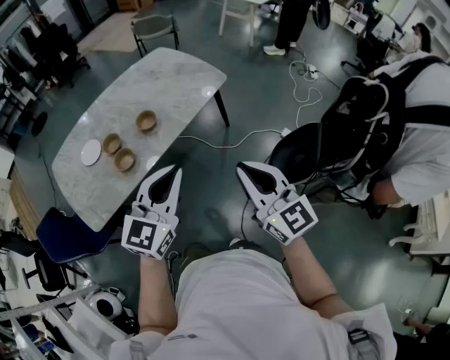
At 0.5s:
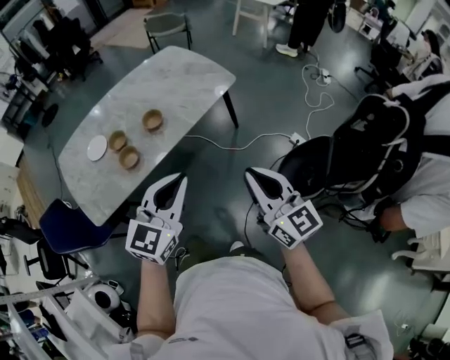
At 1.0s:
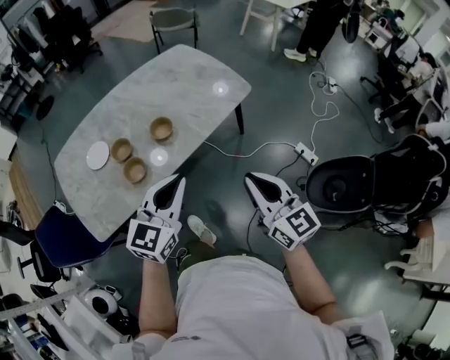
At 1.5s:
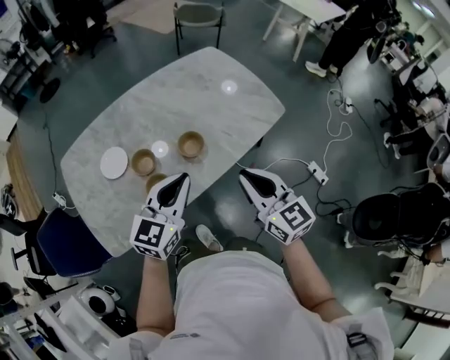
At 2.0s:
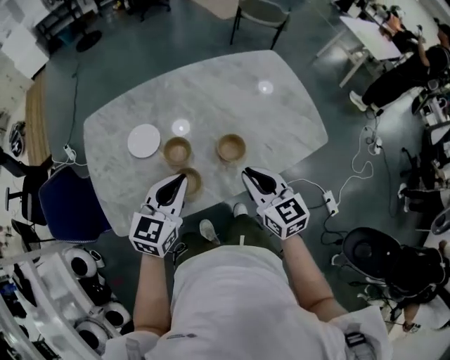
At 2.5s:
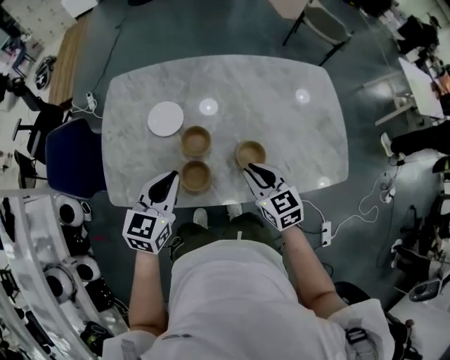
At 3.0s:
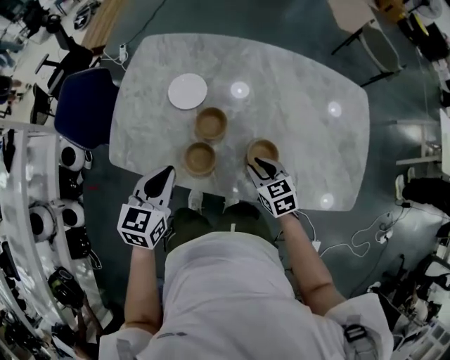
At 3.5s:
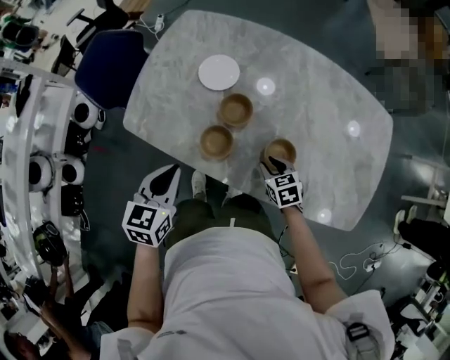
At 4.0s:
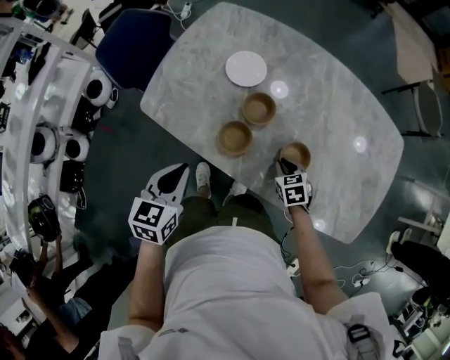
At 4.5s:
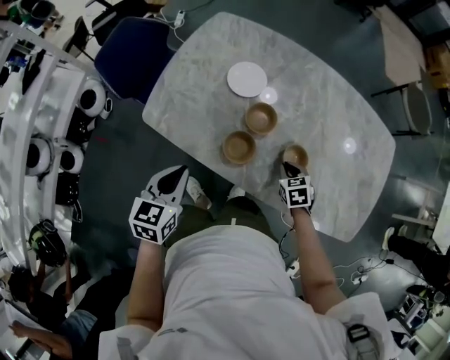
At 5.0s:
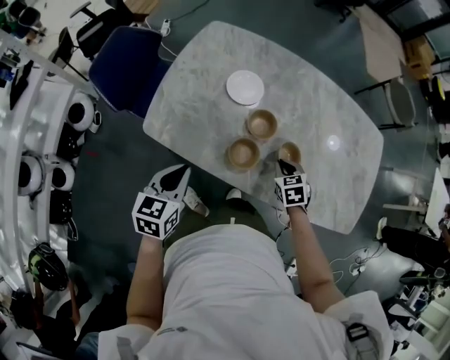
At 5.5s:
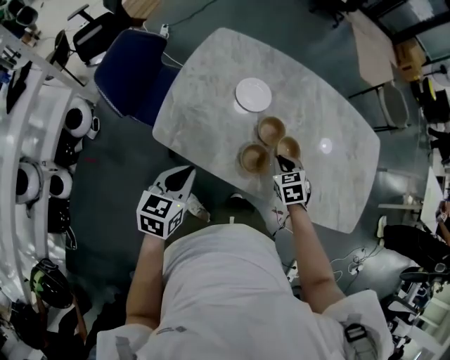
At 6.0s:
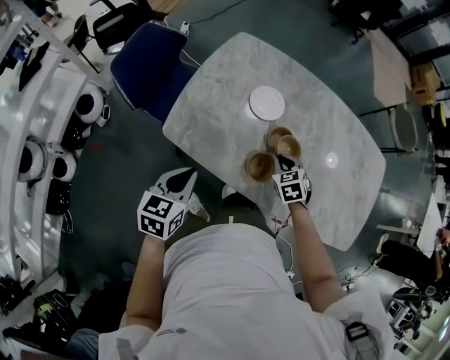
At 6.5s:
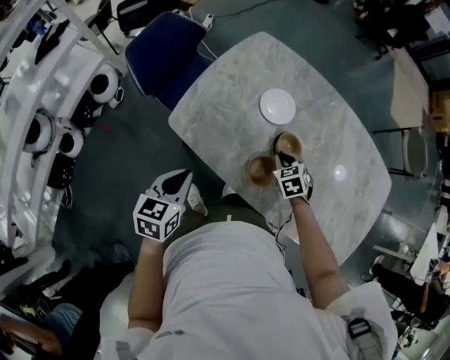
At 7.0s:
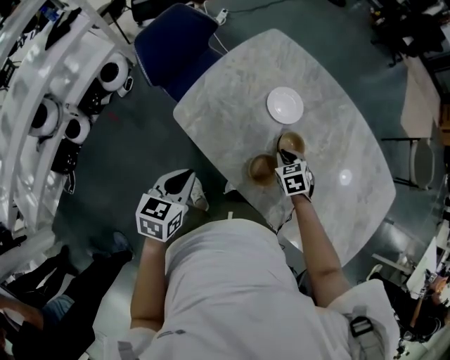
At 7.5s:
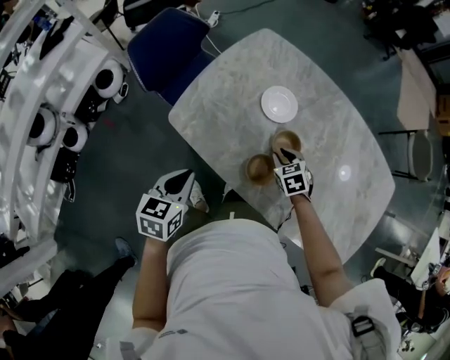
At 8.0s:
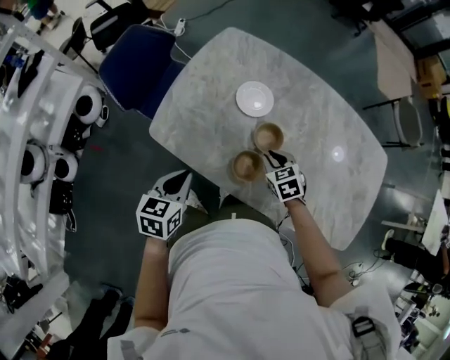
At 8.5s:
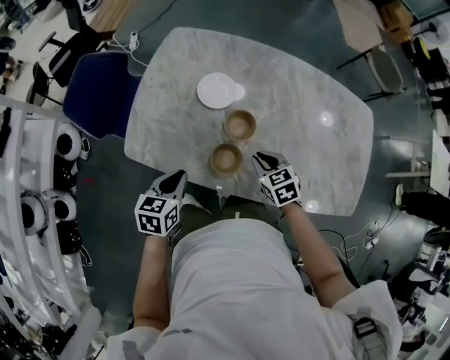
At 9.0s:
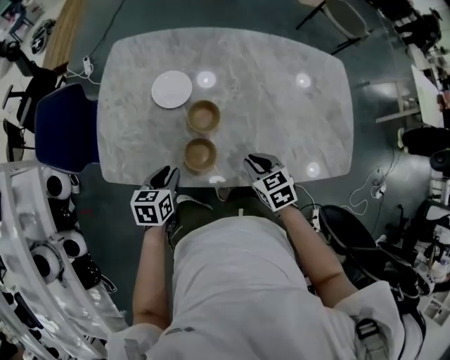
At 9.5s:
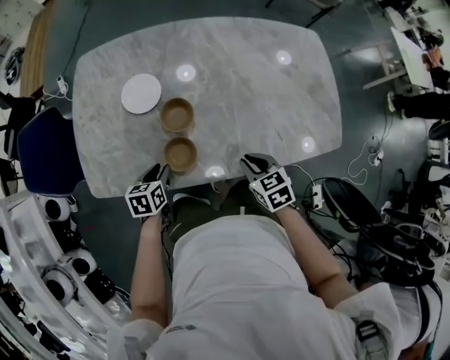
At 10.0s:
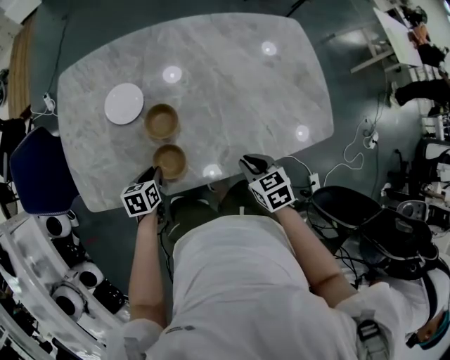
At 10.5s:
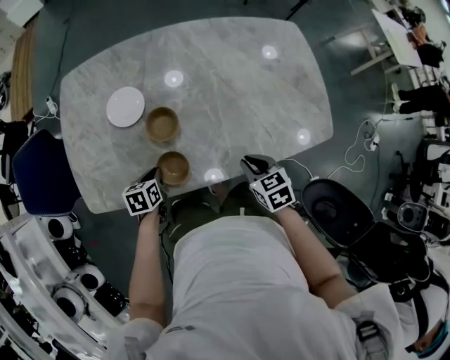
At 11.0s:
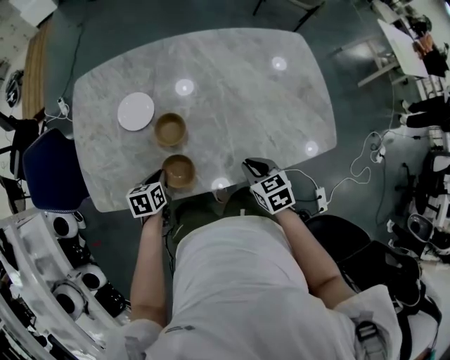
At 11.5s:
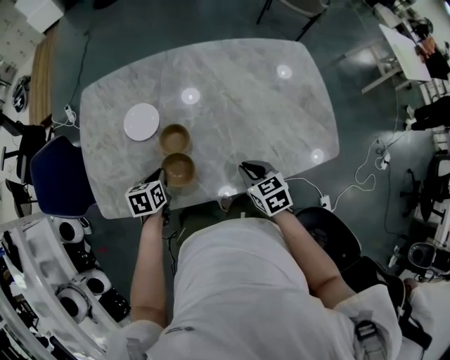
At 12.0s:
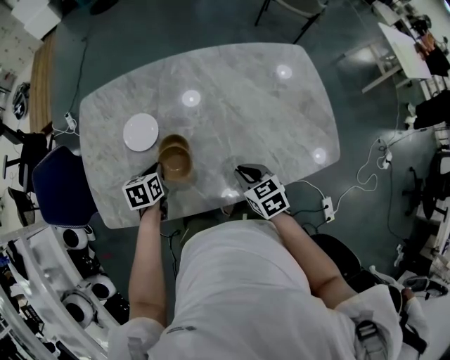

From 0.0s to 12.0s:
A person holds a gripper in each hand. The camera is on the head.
From 0.0s to 2.0s: The right gripper shifts approximately 40 cm forward and to the left, and swivels roughly 30 degrees, while the left gripper heads forward, to the left and downward, covering about 40 cm, and rotates some 30 degrees.
From 2.0s to 4.0s: The left gripper ends up approximately 15 cm from where it was, and rotates roughly 60 degrees. Meanwhile the right gripper moves downward, approximately 25 cm, and tips its fingers downward by approximately 40 degrees.
From 4.0s to 6.0s: The right gripper moves to the left, forward and upward, some 20 cm; the left gripper heads to the left, covering some 15 cm.
From 8.0s to 10.0s: The right gripper changes place by roughly 25 cm, and turns by some 40 degrees, while the left gripper is displaced downward by roughly 15 cm, and changes its angle by about 30 degrees.
From 10.0s to 12.0s: The right gripper heads forward, covering about 5 cm. Meanwhile the left gripper travels forward and upward by about 15 cm.

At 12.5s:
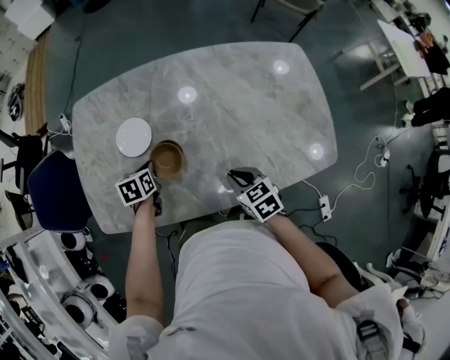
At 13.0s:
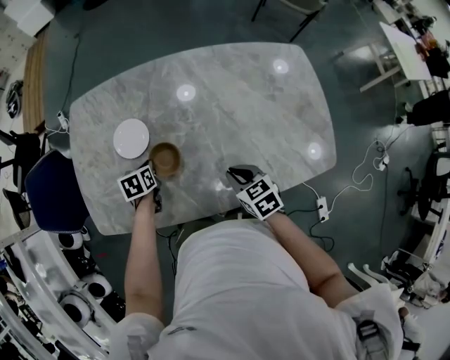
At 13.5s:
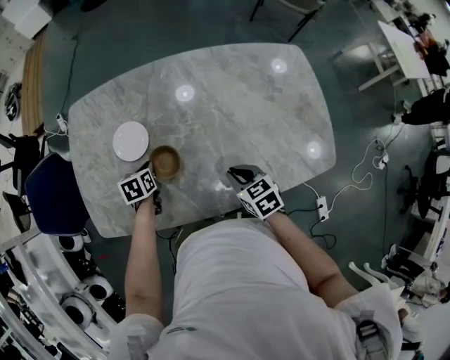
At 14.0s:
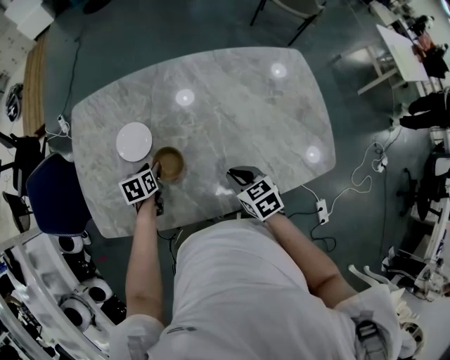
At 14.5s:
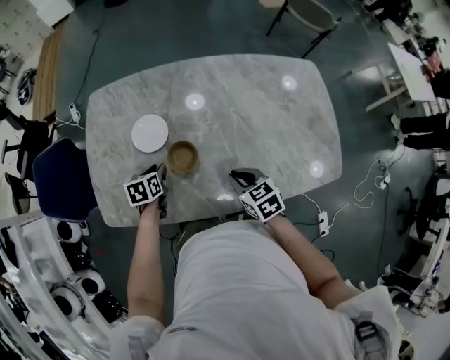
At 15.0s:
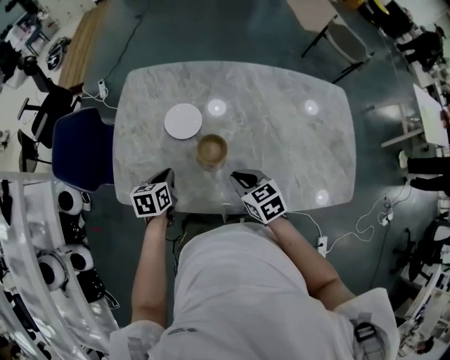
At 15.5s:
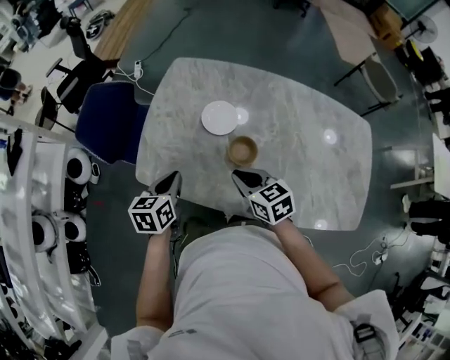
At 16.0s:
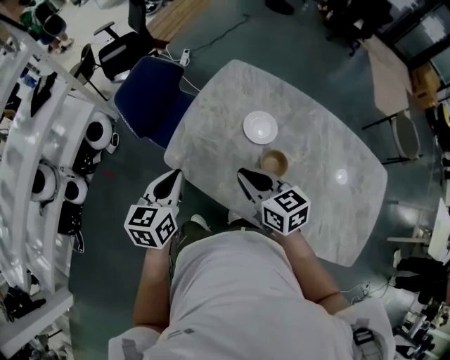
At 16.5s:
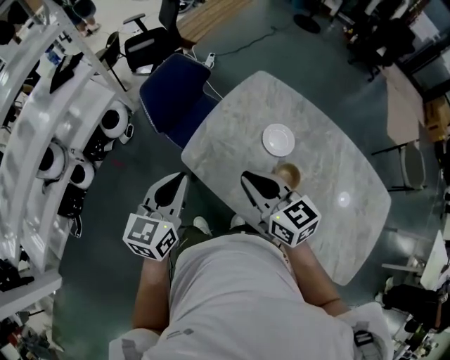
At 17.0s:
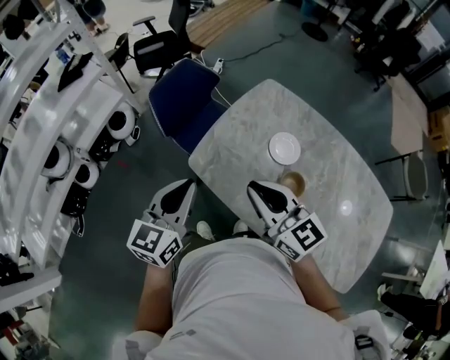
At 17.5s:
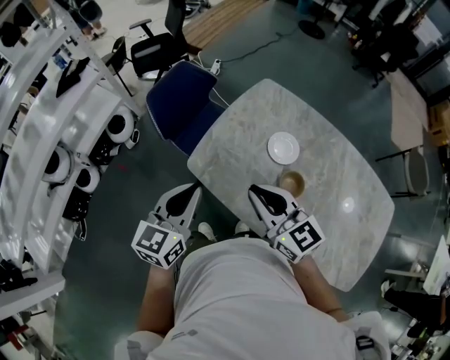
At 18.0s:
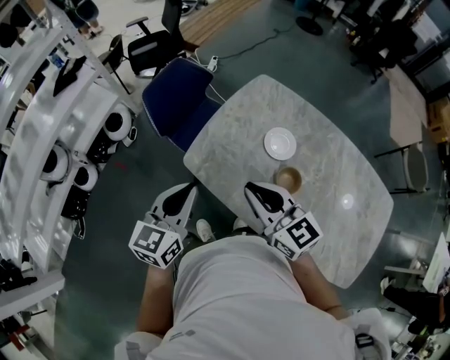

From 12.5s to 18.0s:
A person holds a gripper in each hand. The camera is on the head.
From 12.5s to 14.5s: The left gripper opens its fingers.
From 14.5s to 16.0s: The left gripper changes place by about 35 cm, changes its angle by approximately 40 degrees, and closes up. Meanwhile the right gripper ends up some 30 cm from where it was, and changes its angle by roughly 40 degrees.
From 16.0s to 18.0s: The left gripper heads upward, covering roughly 5 cm, while the right gripper goes about 10 cm upward and to the left, and rotates some 20 degrees.

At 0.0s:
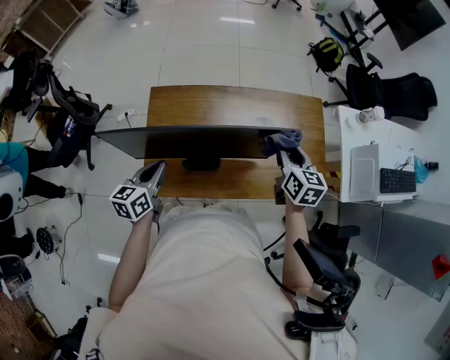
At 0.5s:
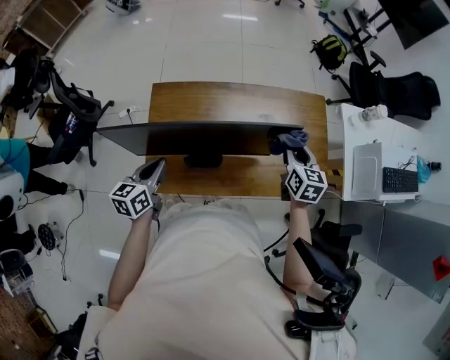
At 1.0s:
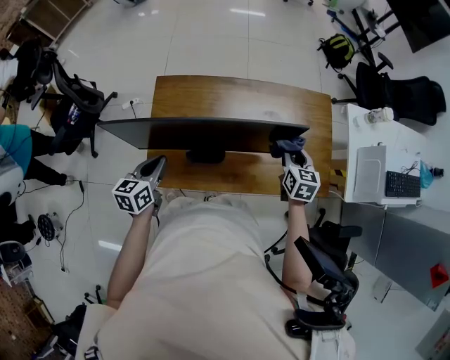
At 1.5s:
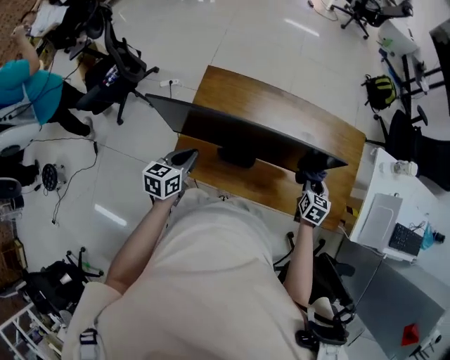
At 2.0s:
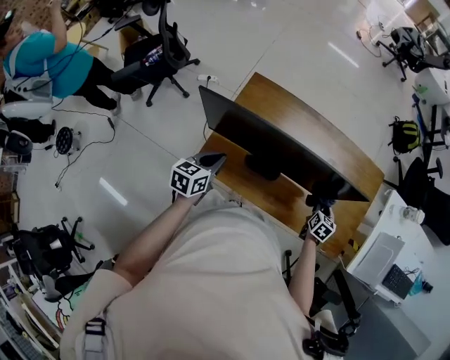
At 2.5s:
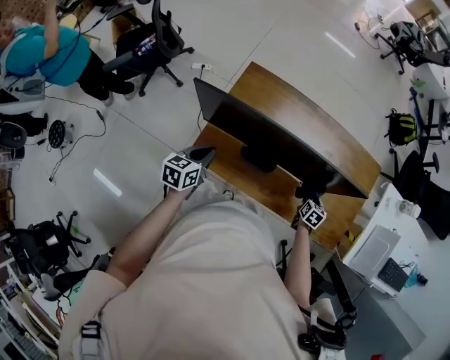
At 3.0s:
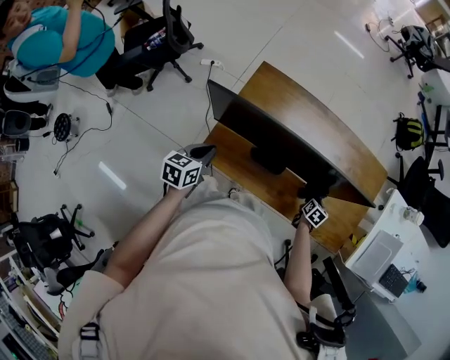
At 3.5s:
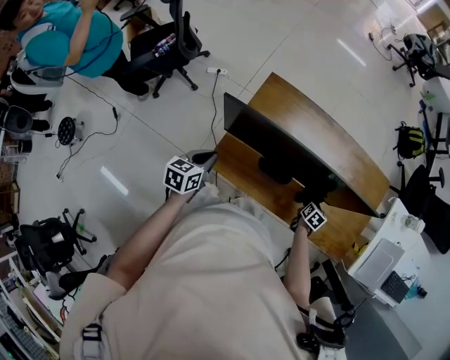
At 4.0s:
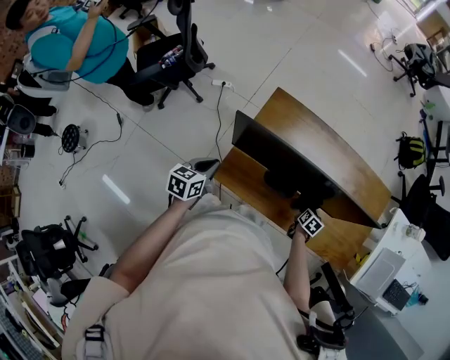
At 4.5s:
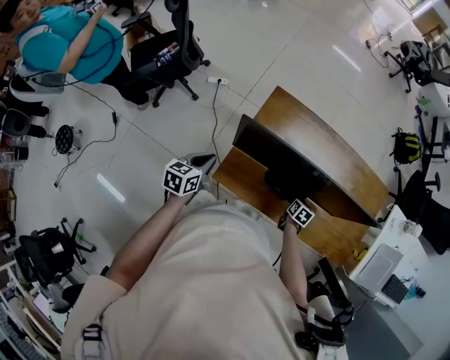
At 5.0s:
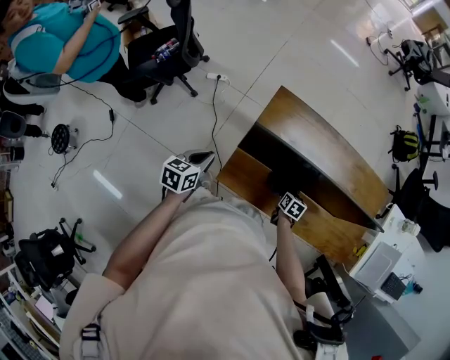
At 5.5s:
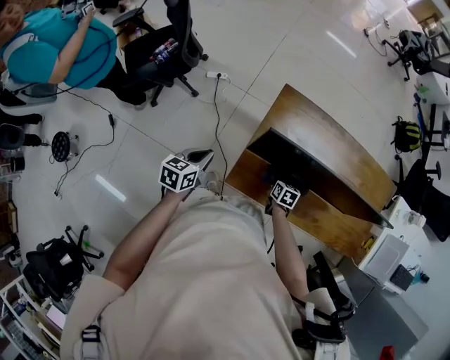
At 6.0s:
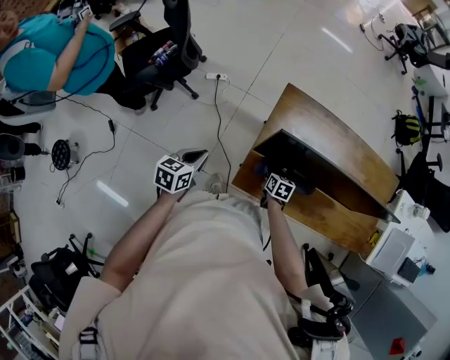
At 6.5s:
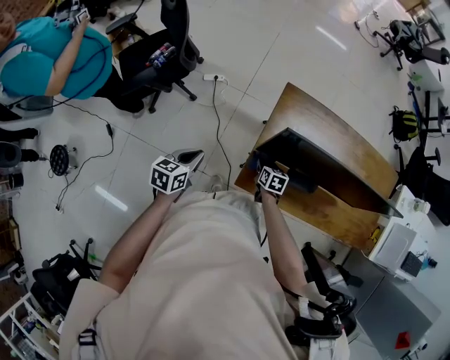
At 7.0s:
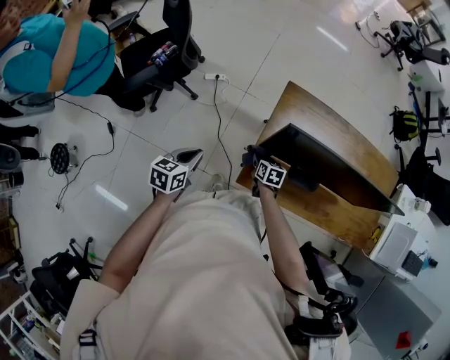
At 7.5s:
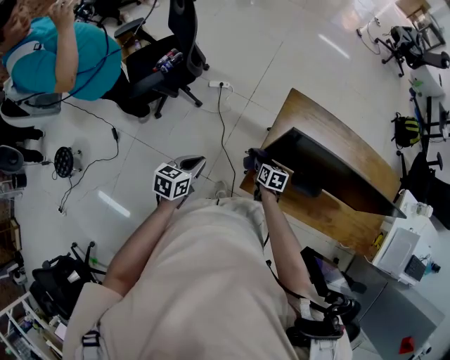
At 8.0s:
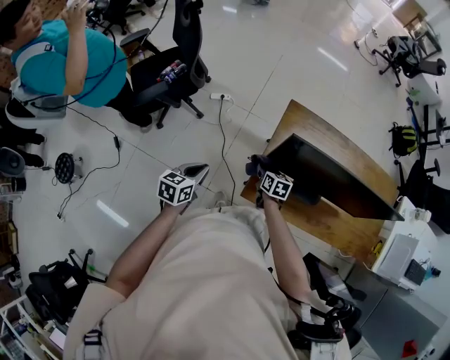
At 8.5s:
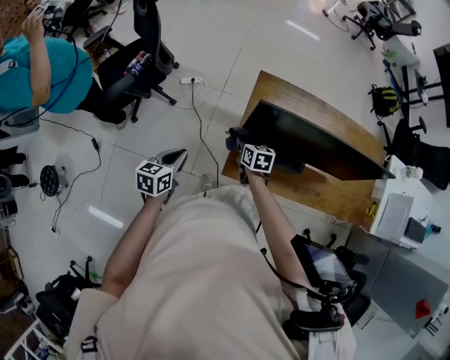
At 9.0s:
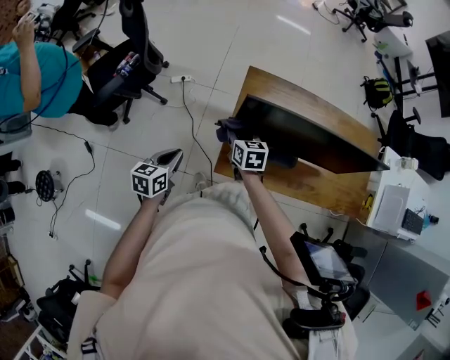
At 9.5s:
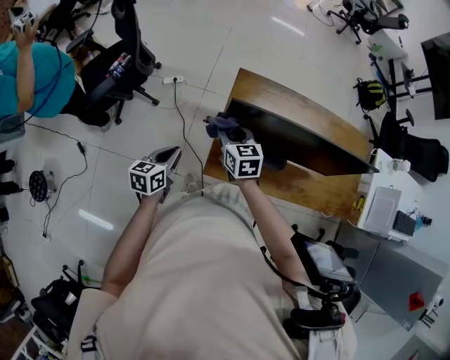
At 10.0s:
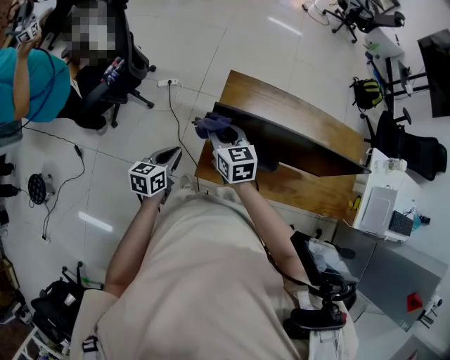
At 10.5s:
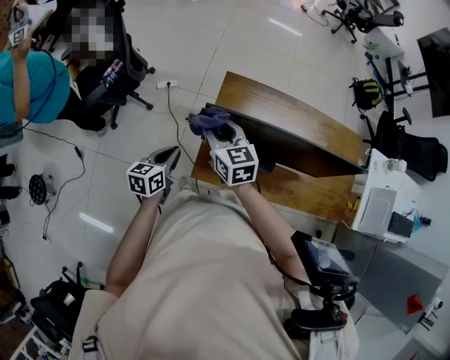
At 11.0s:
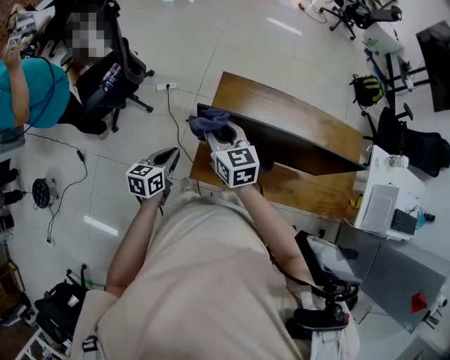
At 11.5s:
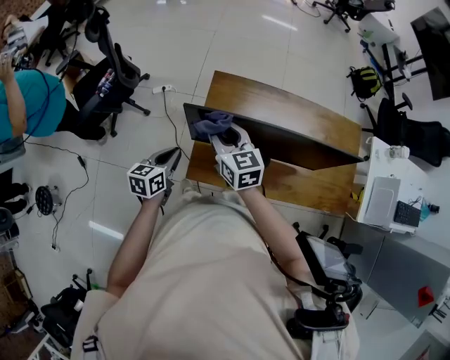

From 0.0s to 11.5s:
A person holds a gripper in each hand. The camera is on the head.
From 0.0s to 2.0s: The right gripper travels downward by some 25 cm, and swivels approximately 20 degrees. The left gripper is displaced downward by approximately 5 cm.
From 2.0s to 4.0s: The right gripper travels to the left and downward by roughly 15 cm; the left gripper is displaced to the left by some 10 cm.
From 4.0s to 6.0s: The right gripper heads to the left, covering roughly 35 cm; the left gripper heads to the left, covering roughly 15 cm.
From 6.0s to 7.5s: The right gripper moves to the left, about 10 cm.
From 7.5s to 9.5s: The left gripper is displaced to the right by about 5 cm. Meanwhile the right gripper goes approximately 20 cm upward, and changes its angle by about 30 degrees.
From 9.5s to 11.5s: The right gripper travels upward and to the right by some 10 cm, while the left gripper goes approximately 10 cm to the right.
